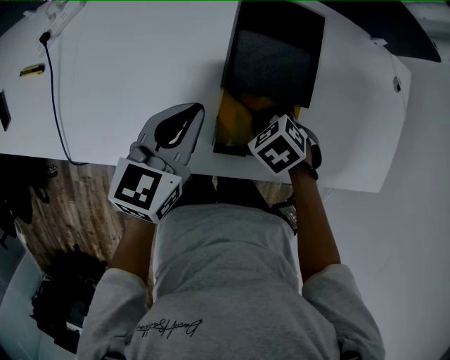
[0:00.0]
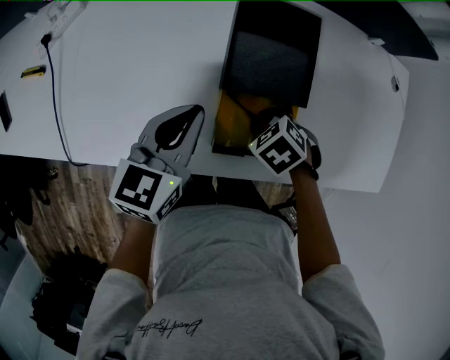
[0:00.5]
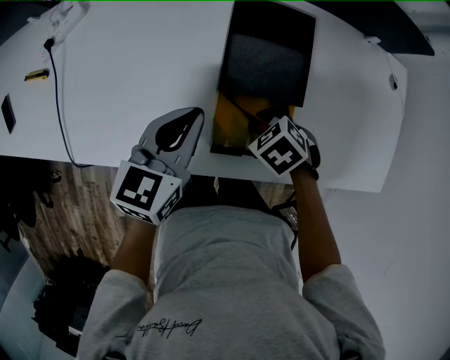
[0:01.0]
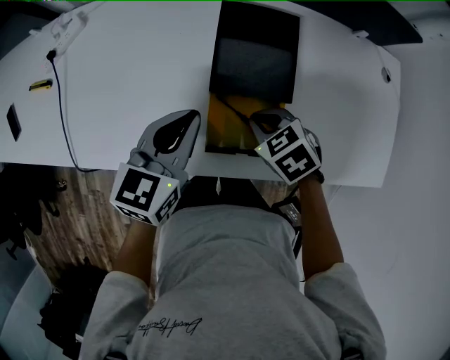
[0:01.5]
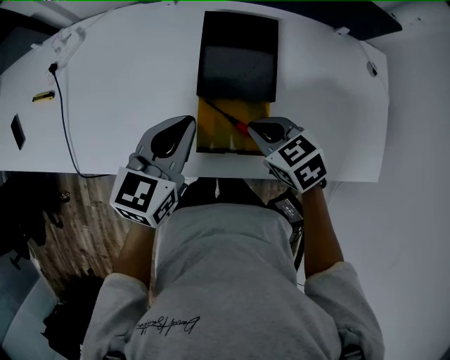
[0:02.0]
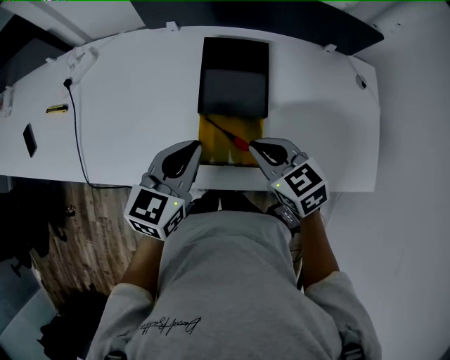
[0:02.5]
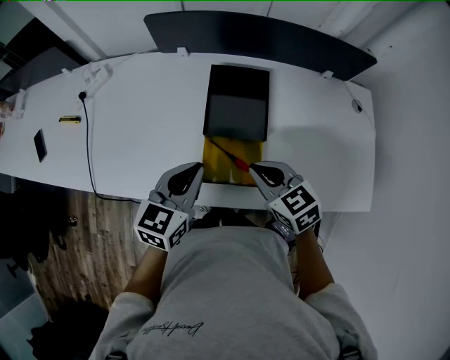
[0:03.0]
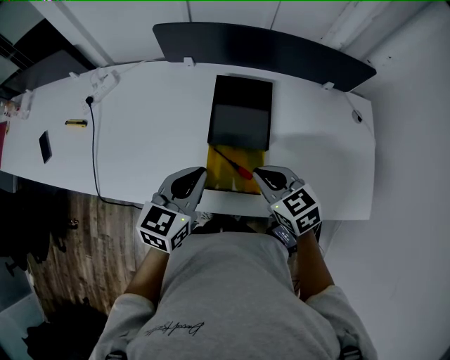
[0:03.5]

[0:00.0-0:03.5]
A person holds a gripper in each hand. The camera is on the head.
0:00.0 to 0:02.0: The left gripper shifts roughly 5 cm upward. Meanwhile the right gripper shifts approximately 10 cm upward, turns by approximately 30 degrees, and closes its fingers.
0:02.0 to 0:03.5: The right gripper moves upward, some 5 cm.

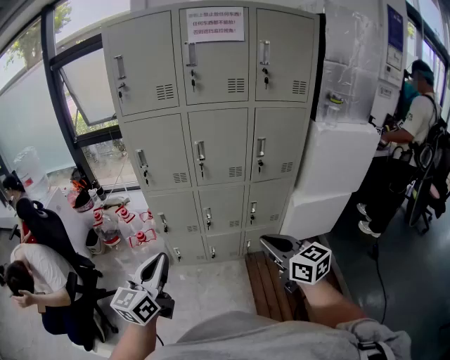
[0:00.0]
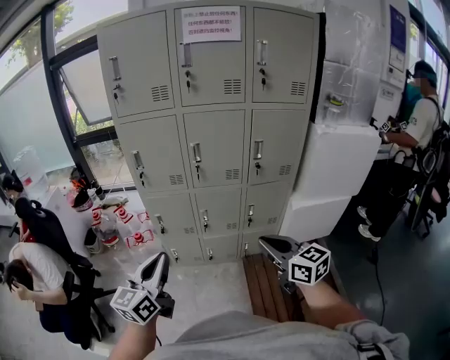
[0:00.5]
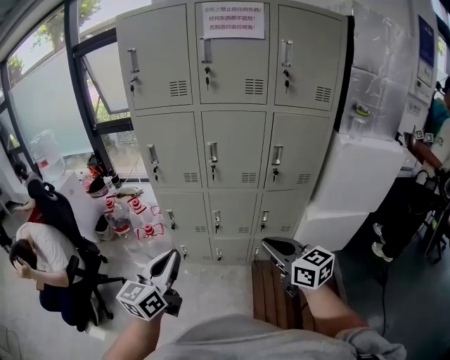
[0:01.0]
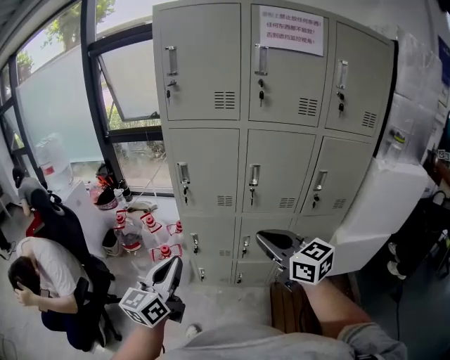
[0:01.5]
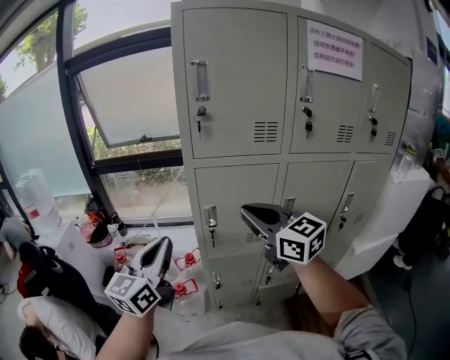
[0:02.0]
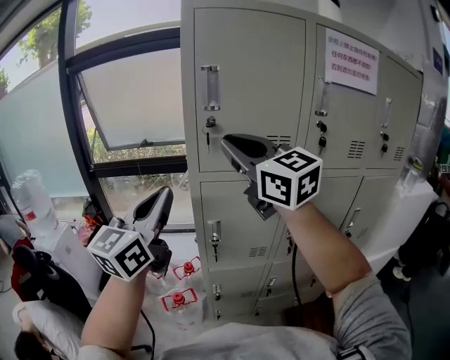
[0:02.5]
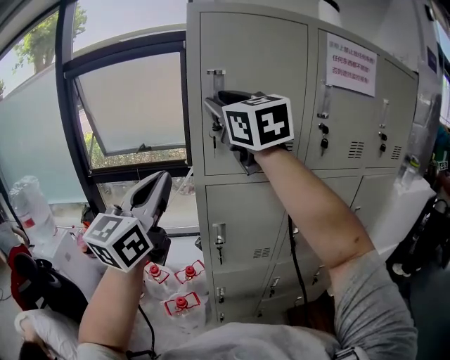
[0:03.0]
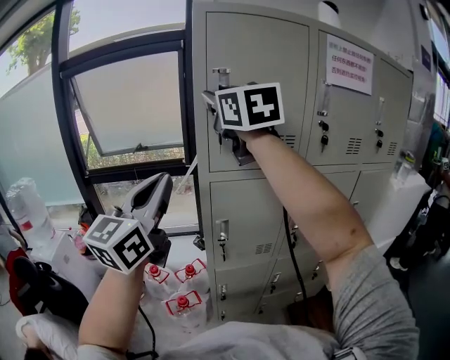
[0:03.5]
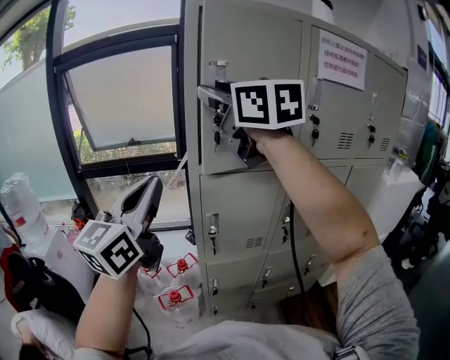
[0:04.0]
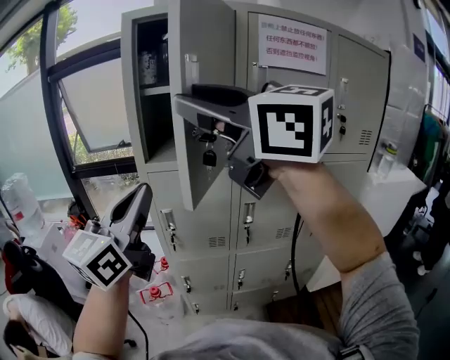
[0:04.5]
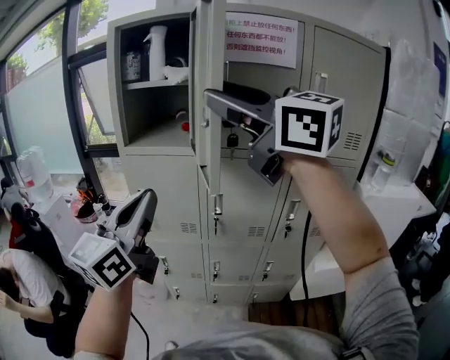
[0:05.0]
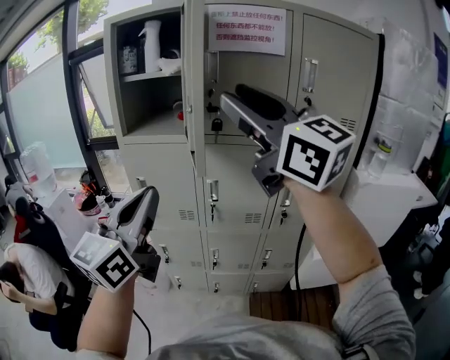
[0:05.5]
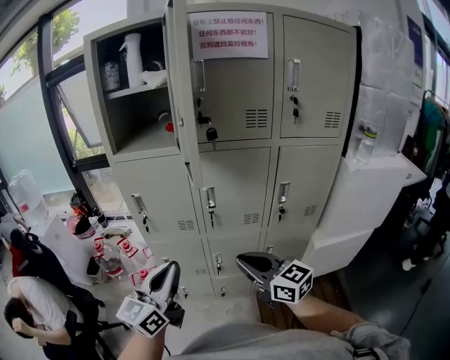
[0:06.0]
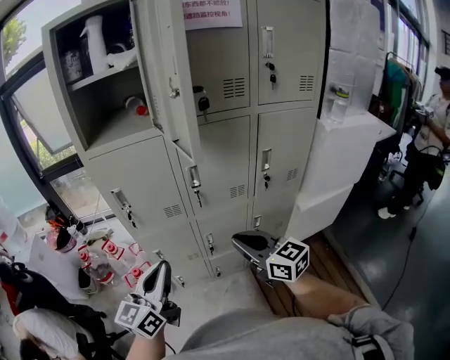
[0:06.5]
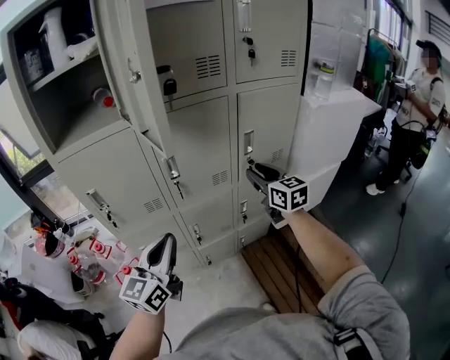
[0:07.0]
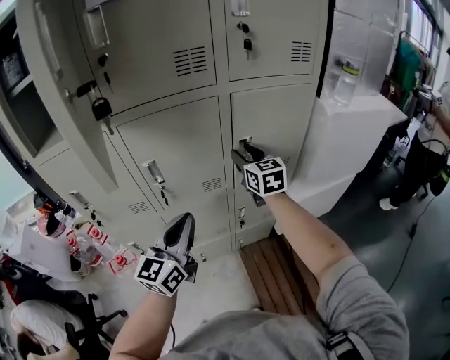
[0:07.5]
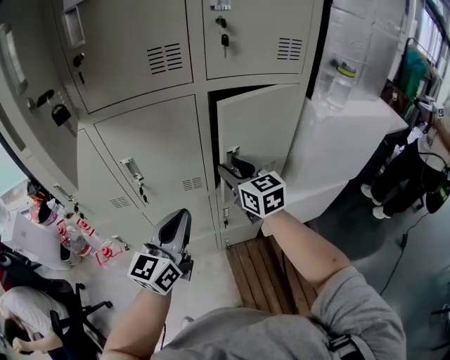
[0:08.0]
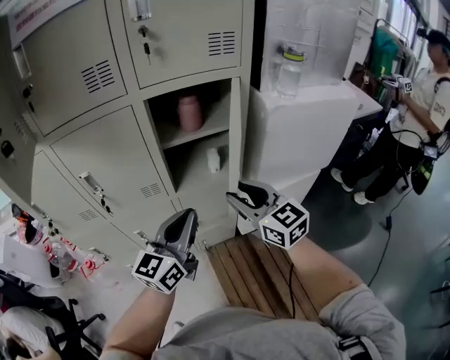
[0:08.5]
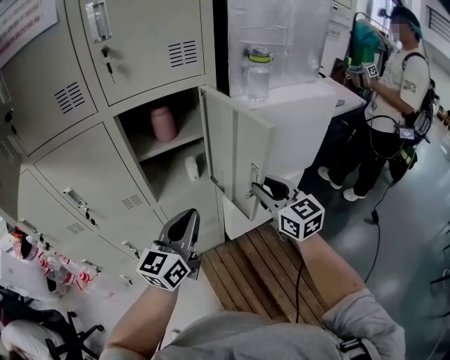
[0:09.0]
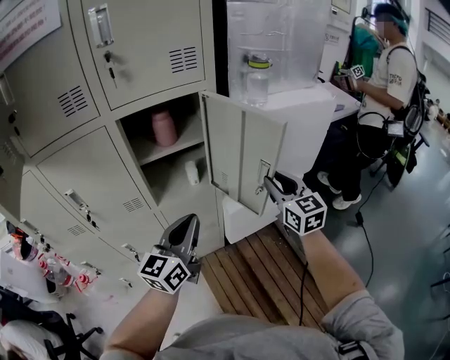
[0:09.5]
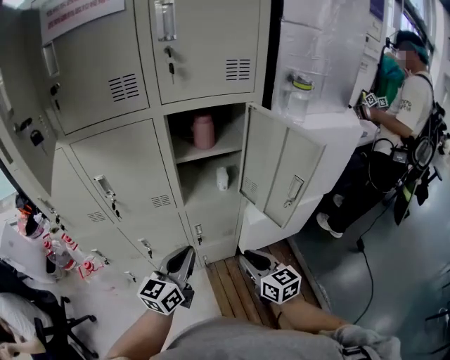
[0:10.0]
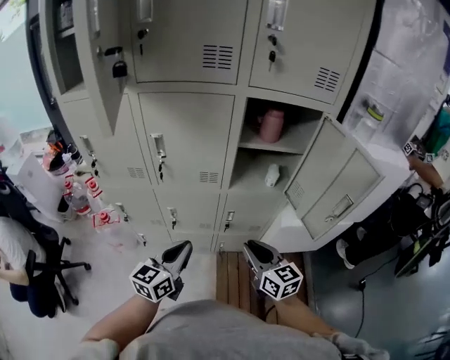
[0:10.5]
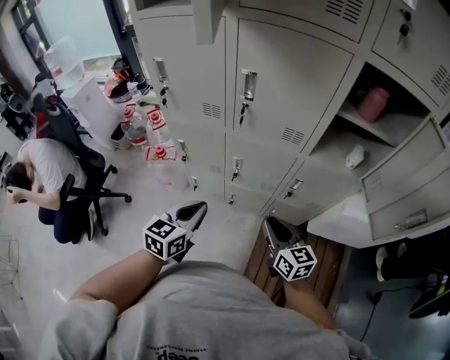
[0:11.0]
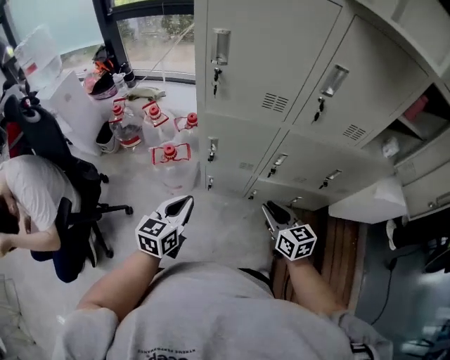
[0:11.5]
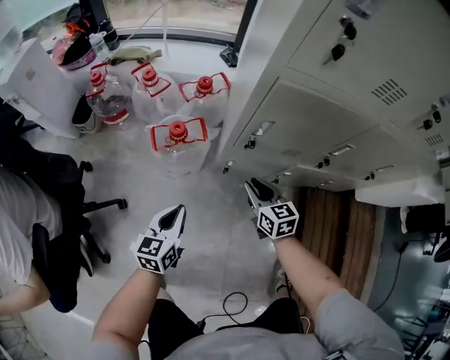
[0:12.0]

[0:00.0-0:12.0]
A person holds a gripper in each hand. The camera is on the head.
0:00.0 to 0:02.0: Both grippers are carried forward and to the left, about 50 cm.
0:02.0 to 0:04.0: The left gripper travels upward by approximately 15 cm. Meanwhile the right gripper travels upward by about 30 cm, and opens.
0:04.0 to 0:06.0: The left gripper heads to the right, backward and downward, covering about 40 cm. The right gripper goes some 60 cm downward, to the right and backward, turns by about 20 degrees, and closes its fingers.
0:06.0 to 0:08.0: The right gripper ends up approximately 30 cm from where it was, swivels roughly 30 degrees, and opens its fingers; the left gripper shifts by about 30 cm.
0:08.0 to 0:10.0: The right gripper shifts roughly 30 cm backward, to the right and downward; the left gripper moves to the right and downward, approximately 15 cm.
0:10.0 to 0:12.0: The pair of grippers is taken to the left, roughly 70 cm. Both grippers move downward, roughly 50 cm. The left gripper swivels some 40 degrees. The right gripper rotates approximately 20 degrees.

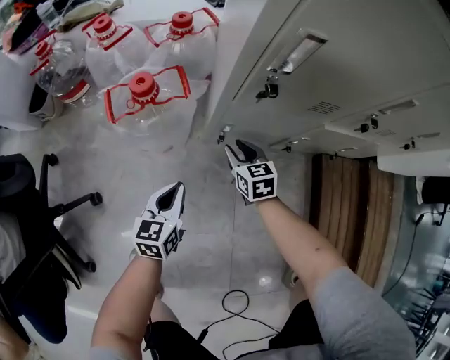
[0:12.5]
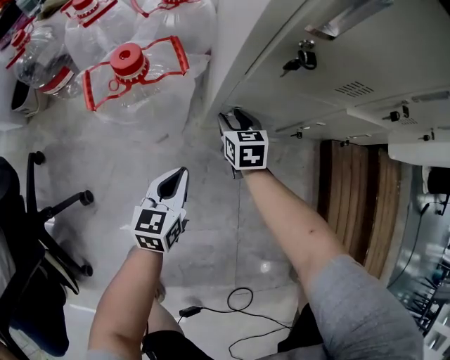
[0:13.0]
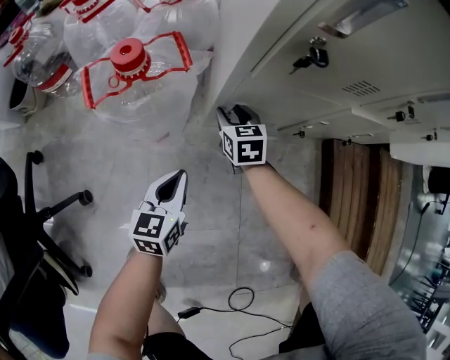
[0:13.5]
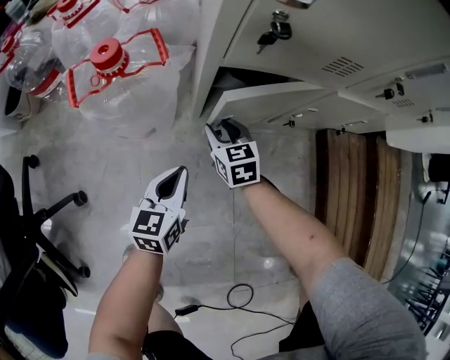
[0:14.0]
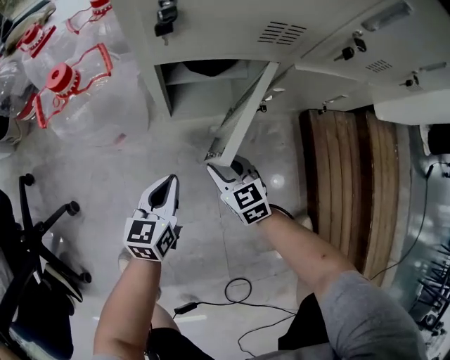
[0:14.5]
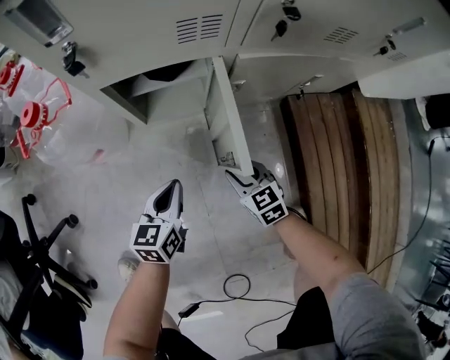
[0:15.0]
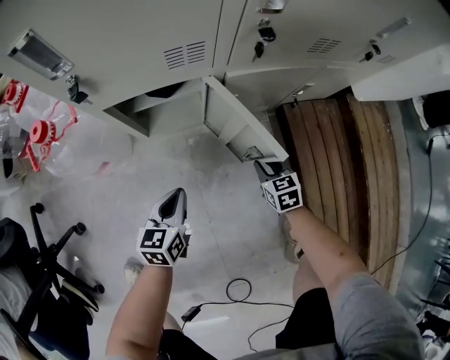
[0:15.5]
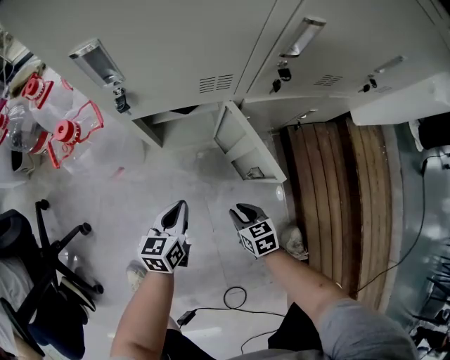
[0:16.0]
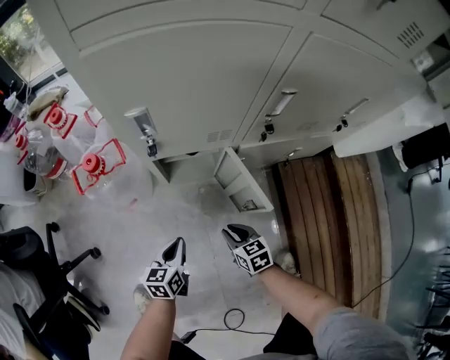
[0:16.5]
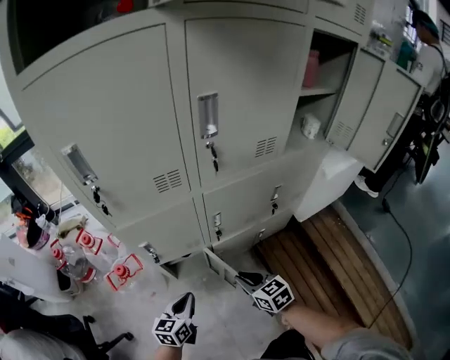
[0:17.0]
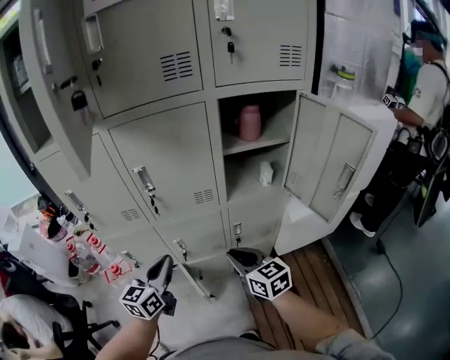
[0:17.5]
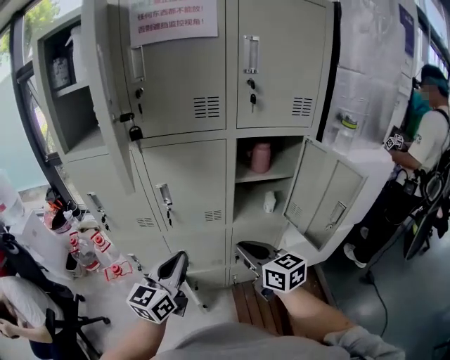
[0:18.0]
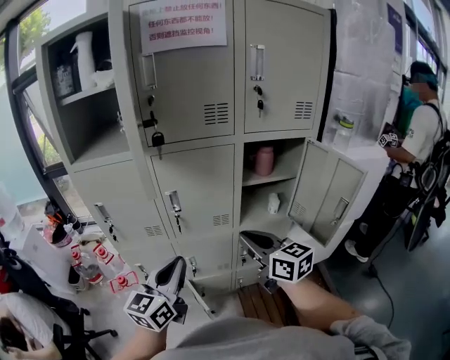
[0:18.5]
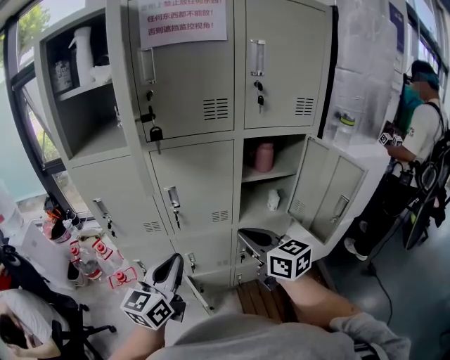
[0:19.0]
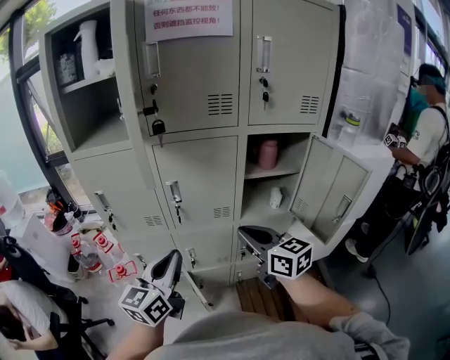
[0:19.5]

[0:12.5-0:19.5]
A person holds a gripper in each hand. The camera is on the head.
0:12.5 to 0:14.5: The right gripper is displaced backward, to the right and downward by some 15 cm. The left gripper goes roughly 15 cm to the right and downward.
0:14.5 to 0:16.0: The left gripper goes approximately 10 cm to the right. Meanwhile the right gripper is displaced to the right and backward by approximately 15 cm, and swivels approximately 20 degrees.
0:16.0 to 0:17.5: The two grippers go about 70 cm upward. The right gripper tips its fingers upward by approximately 40 degrees, while the left gripper changes its angle by roughly 30 degrees.
0:17.5 to 0:19.5: Both grippers travel together upward, approximately 20 cm.

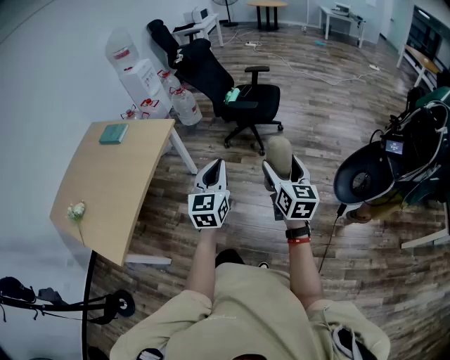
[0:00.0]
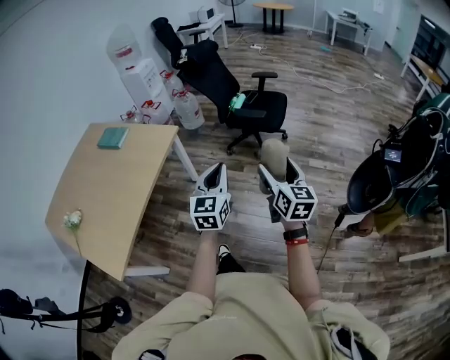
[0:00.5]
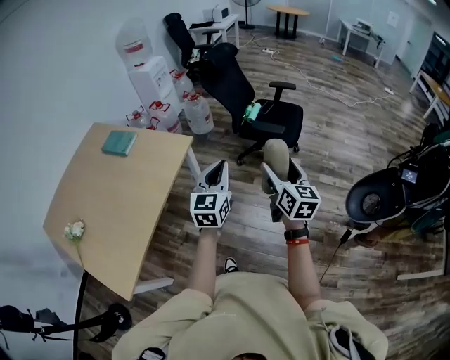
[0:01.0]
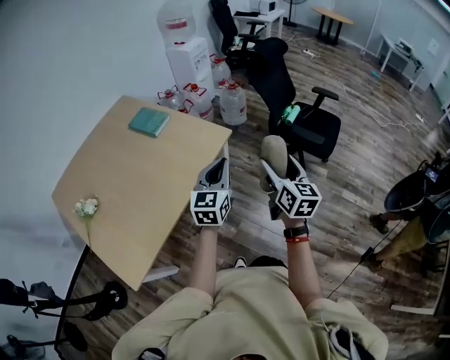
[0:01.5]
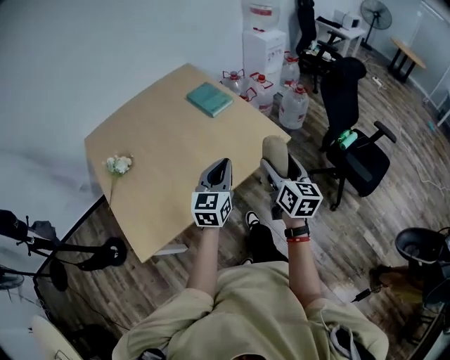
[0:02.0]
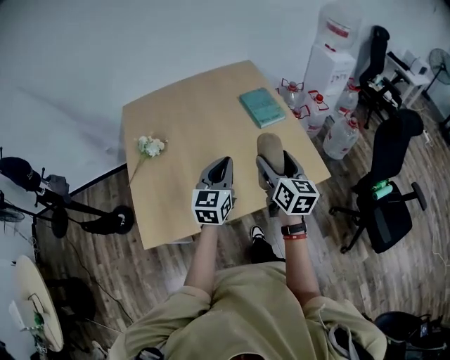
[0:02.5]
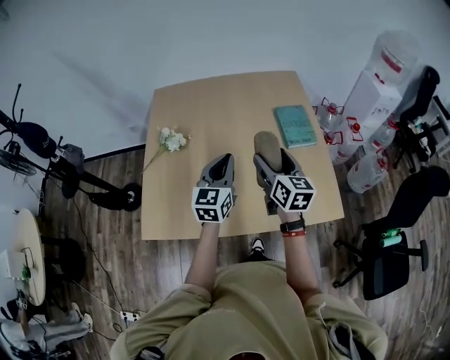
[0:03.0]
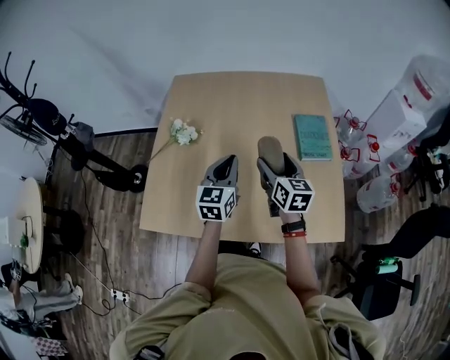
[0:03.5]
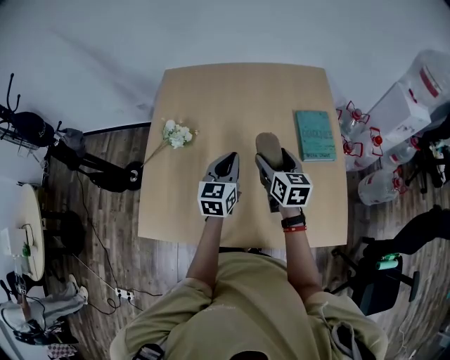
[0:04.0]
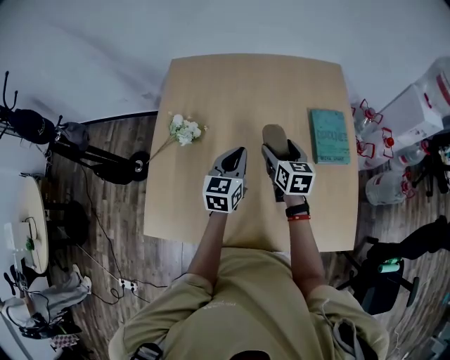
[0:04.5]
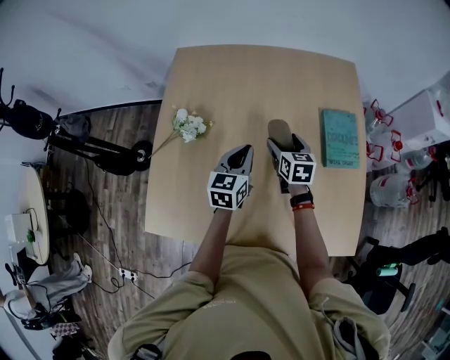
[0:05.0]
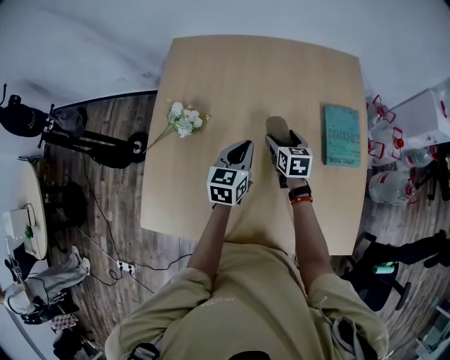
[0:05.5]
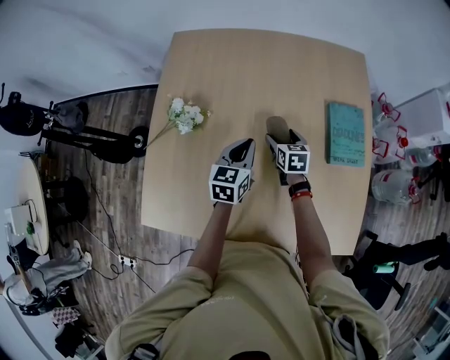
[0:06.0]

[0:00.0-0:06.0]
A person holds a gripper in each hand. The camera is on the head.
0:00.0 to 0:02.0: The pair of grippers is taken about 60 cm. The right gripper changes its angle by about 40 degrees. The left gripper turns by roughly 30 degrees.
0:02.0 to 0:04.0: The two grippers travel together, approximately 50 cm. The right gripper swivels approximately 50 degrees. The left gripper changes its angle by approximately 40 degrees.
0:04.0 to 0:06.0: The right gripper is displaced downward and forward by roughly 25 cm, and rotates some 20 degrees, while the left gripper moves forward and downward, approximately 15 cm.
